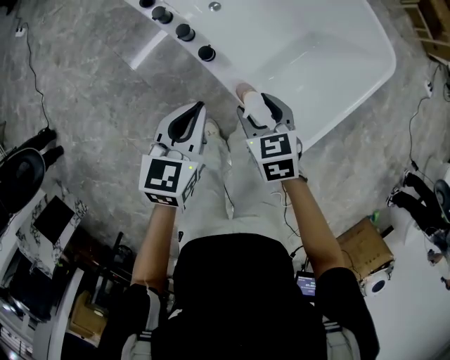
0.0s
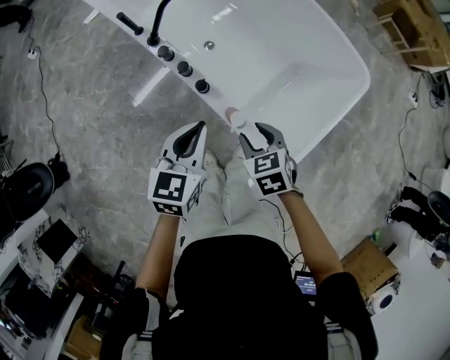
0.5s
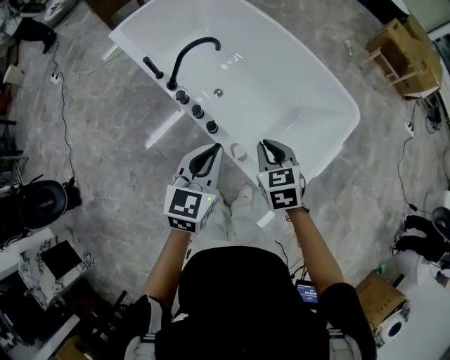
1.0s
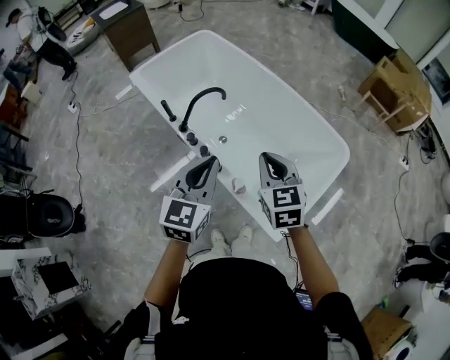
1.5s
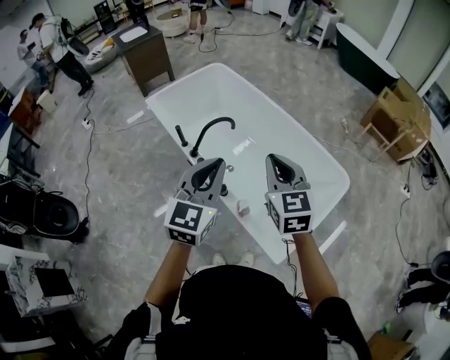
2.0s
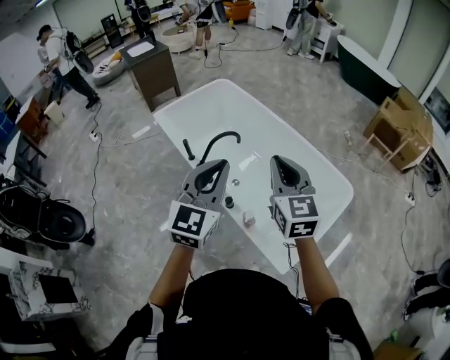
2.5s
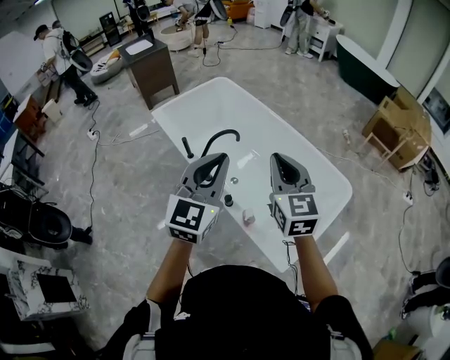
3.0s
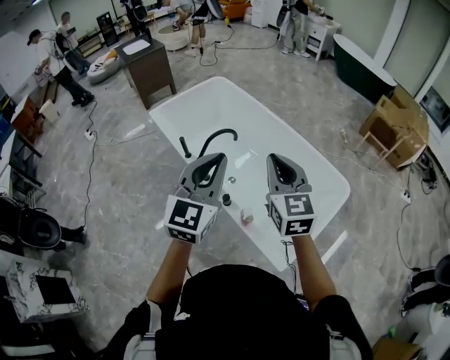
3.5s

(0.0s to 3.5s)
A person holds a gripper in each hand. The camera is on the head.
0.0s - 2.0s: Both grippers travel together upward, some 40 cm. The left gripper changes its angle by roughly 40 degrees. The right gripper points its fingers some 40 degrees further upward, and closes up.
2.0s - 3.5s: The left gripper heads upward, covering roughly 5 cm.

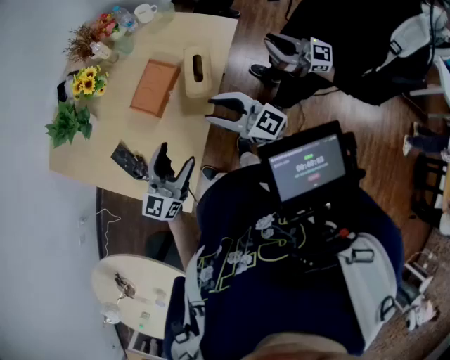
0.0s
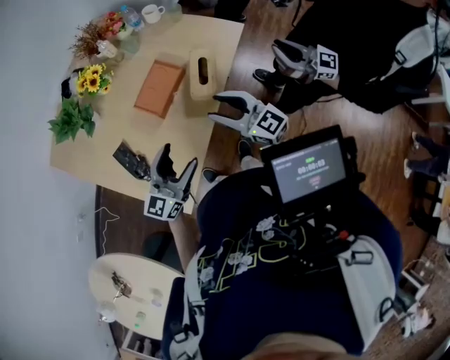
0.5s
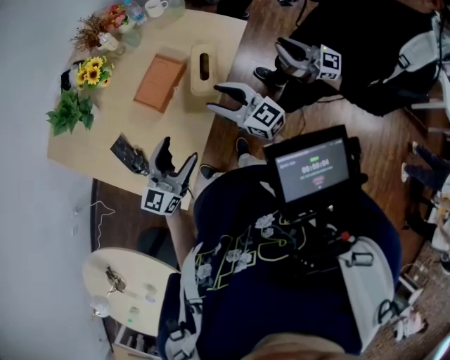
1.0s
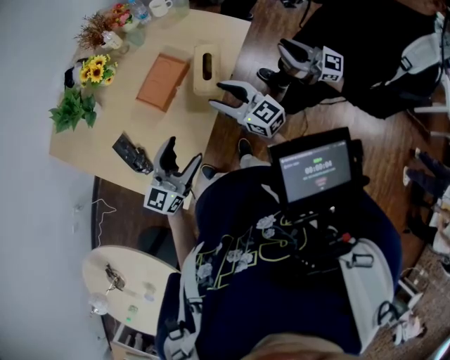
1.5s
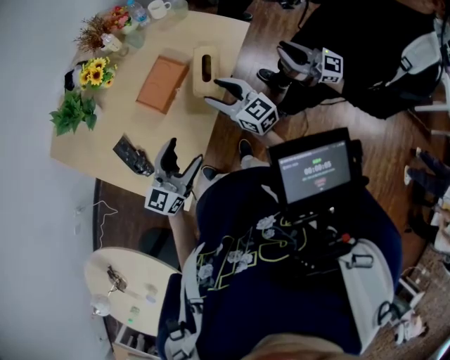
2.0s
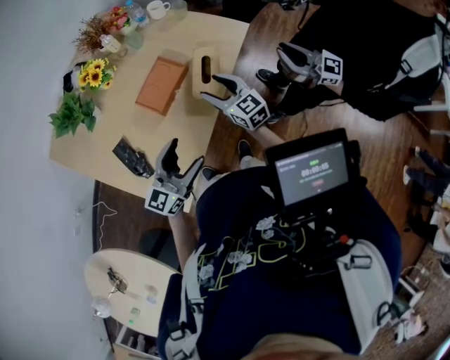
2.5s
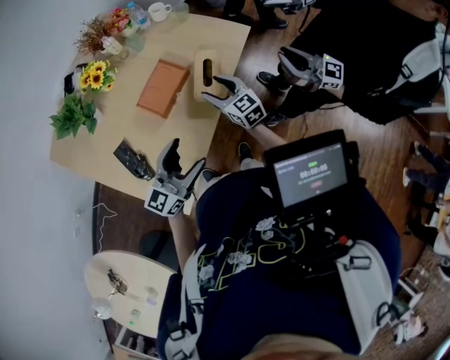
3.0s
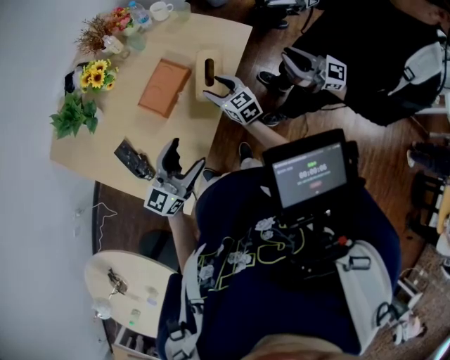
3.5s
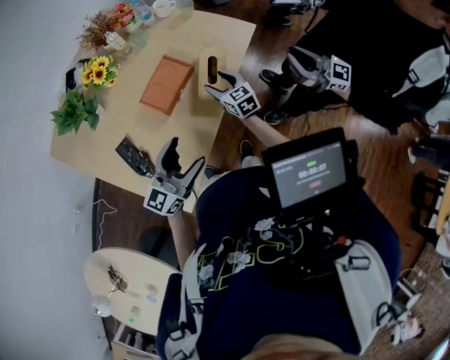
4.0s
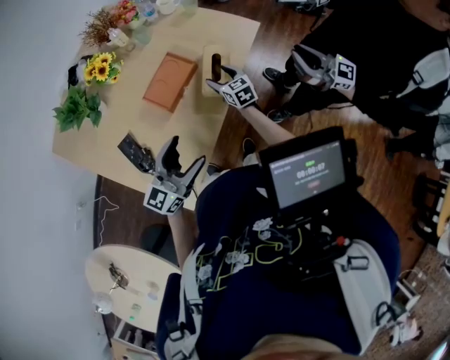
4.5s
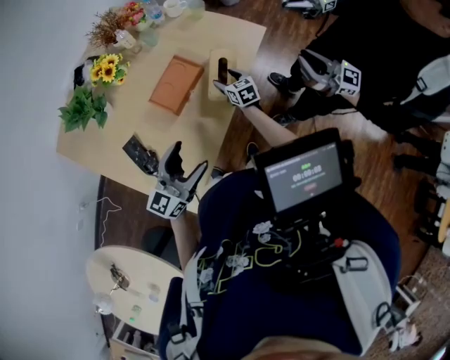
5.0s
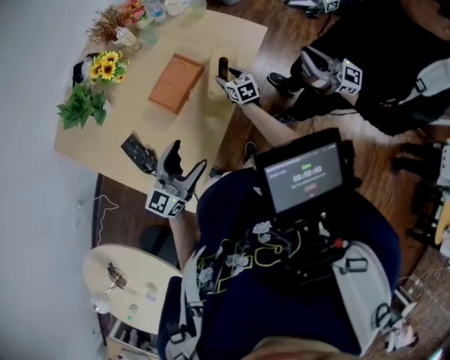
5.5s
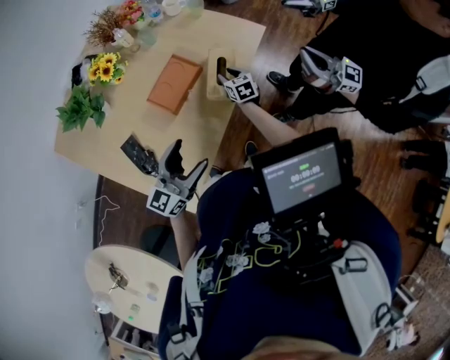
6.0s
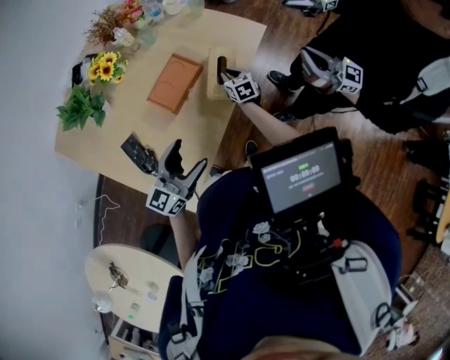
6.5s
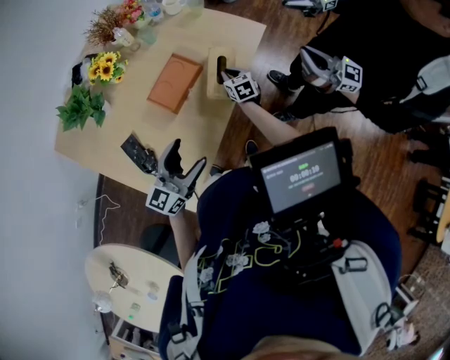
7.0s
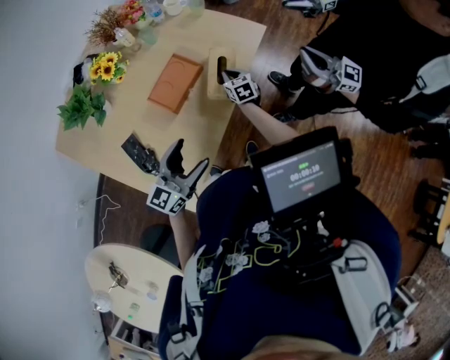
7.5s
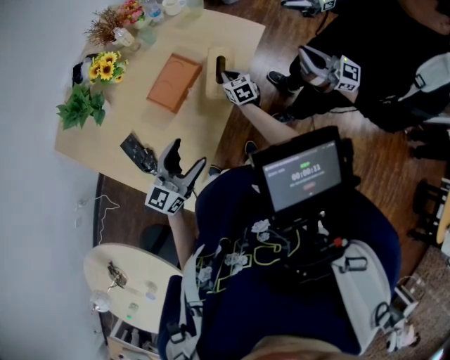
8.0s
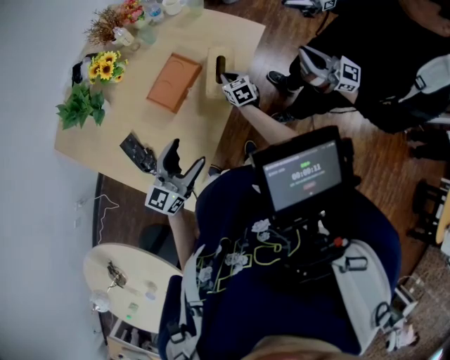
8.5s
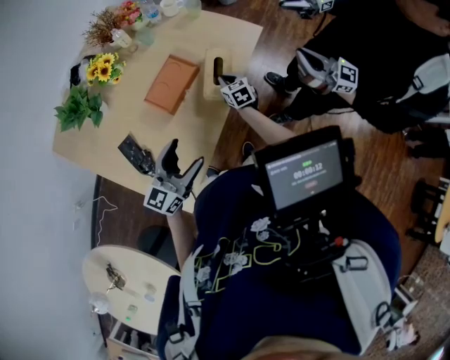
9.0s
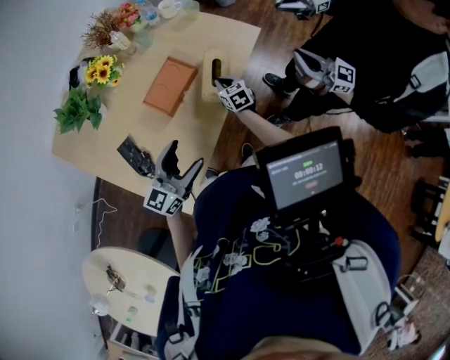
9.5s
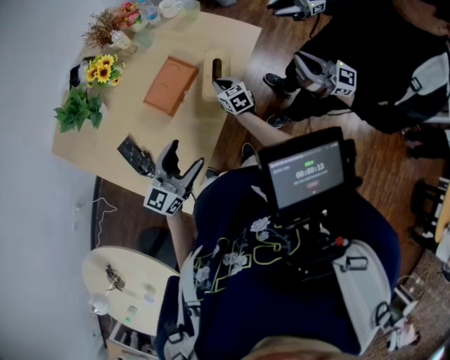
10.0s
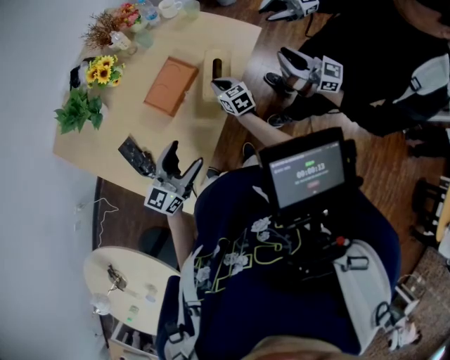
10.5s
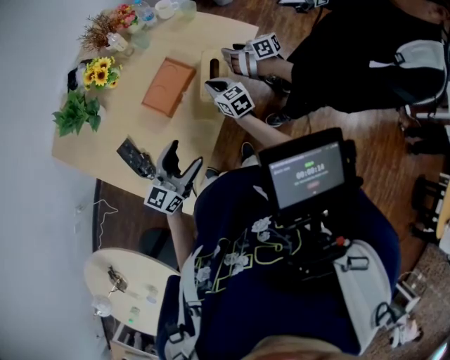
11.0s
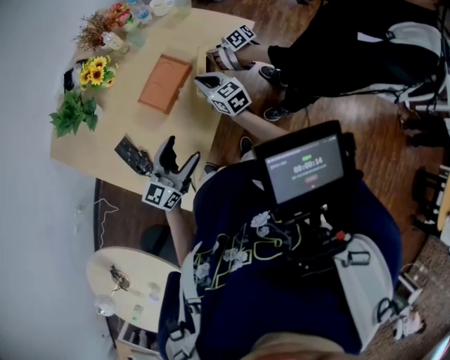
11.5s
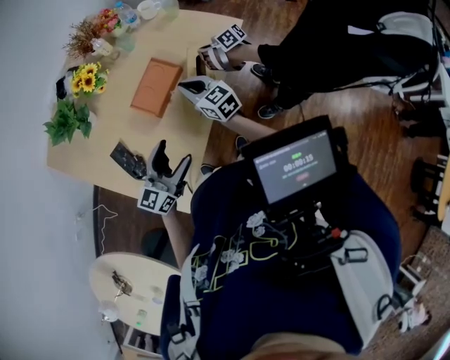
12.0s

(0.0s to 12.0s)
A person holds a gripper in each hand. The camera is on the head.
0.0s - 2.0s: The right gripper goes roughly 5 cm forward.
2.0s - 4.0s: The right gripper goes approximately 15 cm downward and forward.
4.0s - 6.0s: The right gripper heads downward and forward, covering some 10 cm, and closes its fingers.
6.0s - 8.0s: The right gripper closes up.
8.0s - 10.0s: The grippers move only a little.
10.0s - 12.0s: The right gripper is displaced upward and to the left by approximately 15 cm, and changes its angle by approximately 20 degrees.

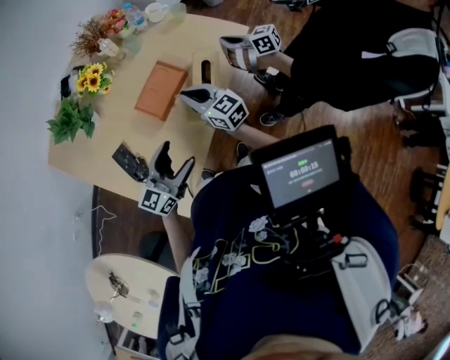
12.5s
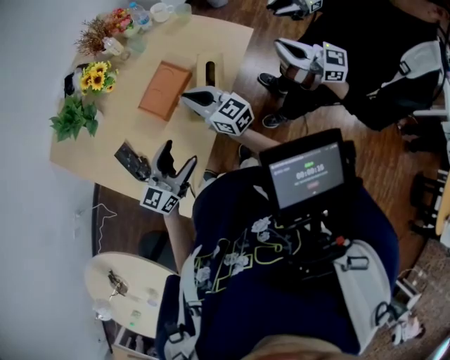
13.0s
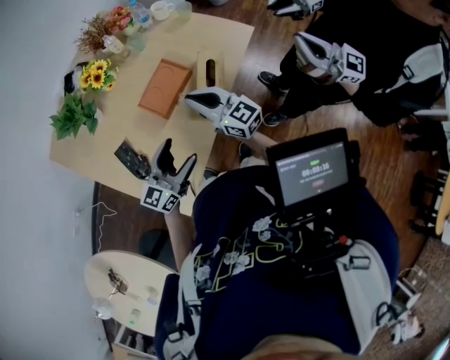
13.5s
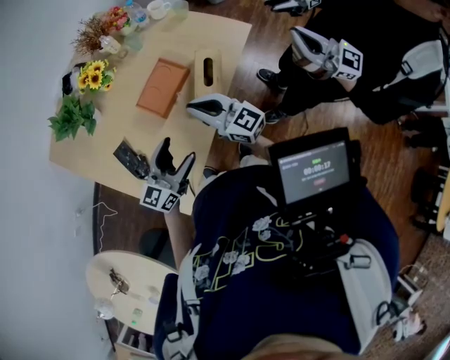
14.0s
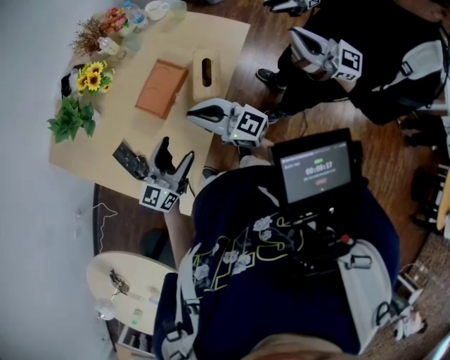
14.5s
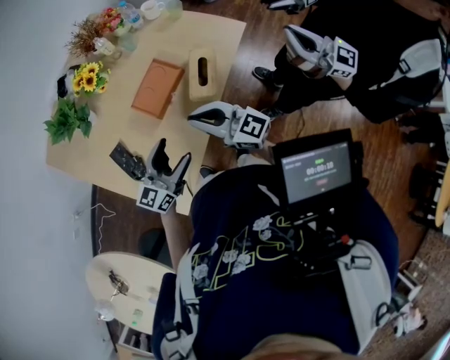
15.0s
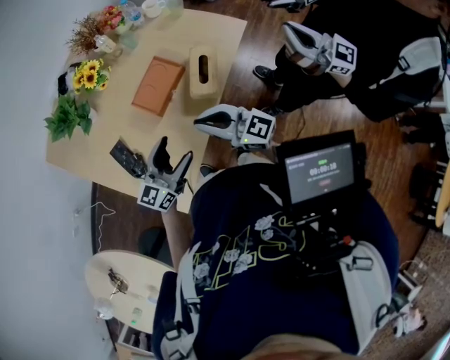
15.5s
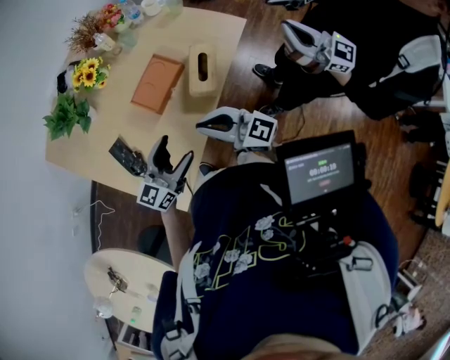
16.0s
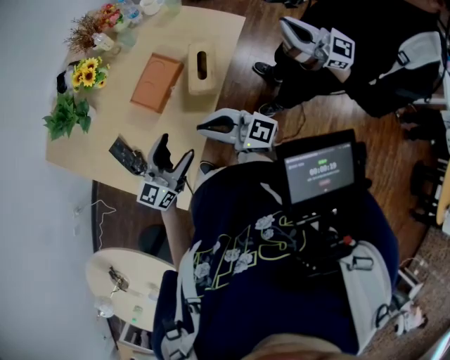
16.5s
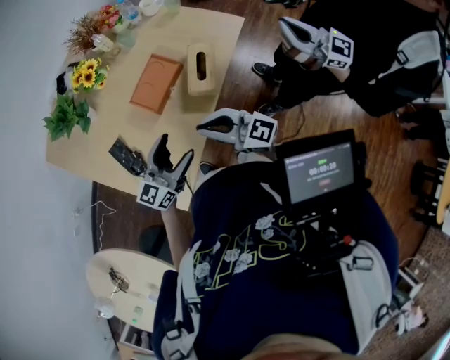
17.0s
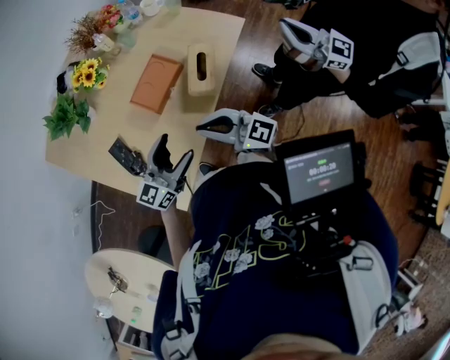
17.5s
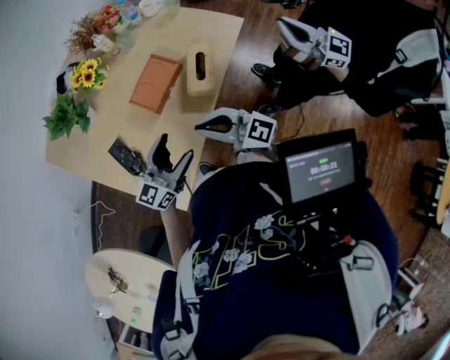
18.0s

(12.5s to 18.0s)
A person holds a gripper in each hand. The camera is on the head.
12.5s - 14.5s: The right gripper travels backward and upward by about 10 cm.
14.5s - 16.0s: The right gripper shifts roughly 5 cm backward.
16.0s - 18.0s: Neither gripper changes place.

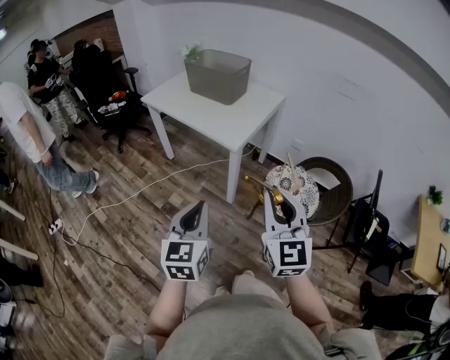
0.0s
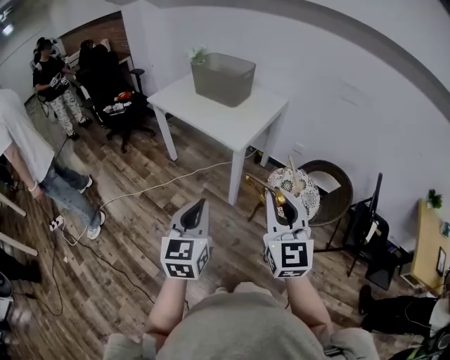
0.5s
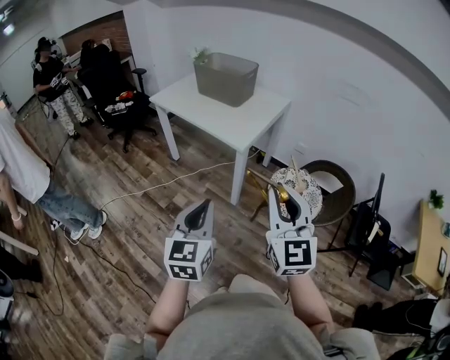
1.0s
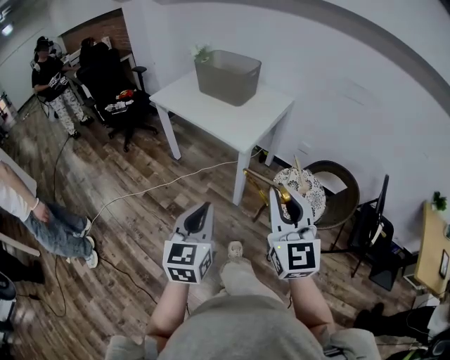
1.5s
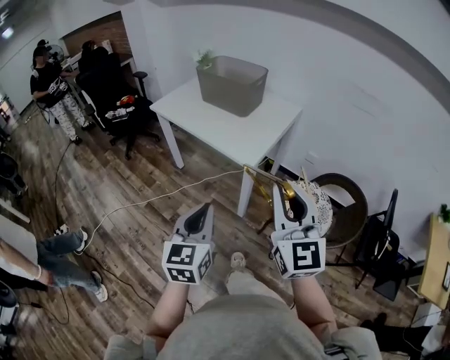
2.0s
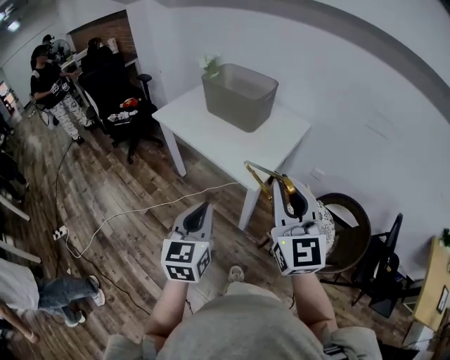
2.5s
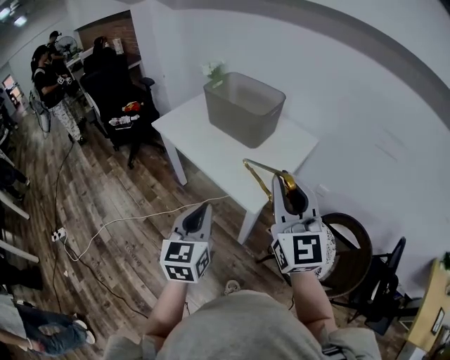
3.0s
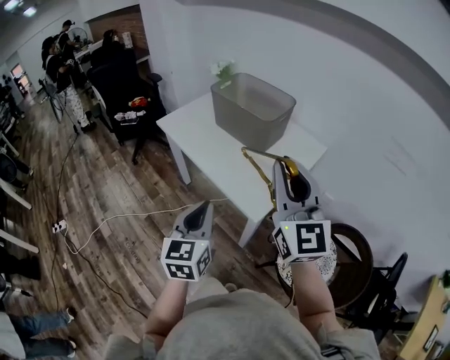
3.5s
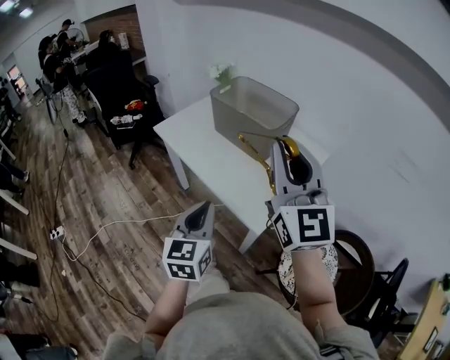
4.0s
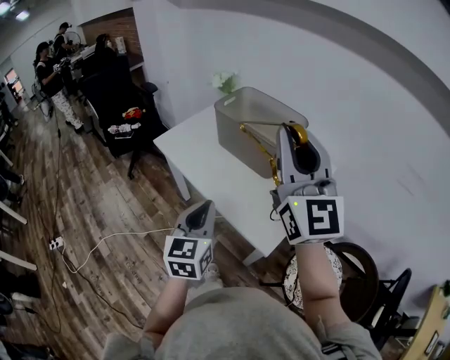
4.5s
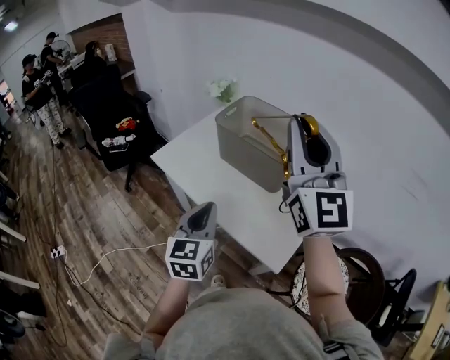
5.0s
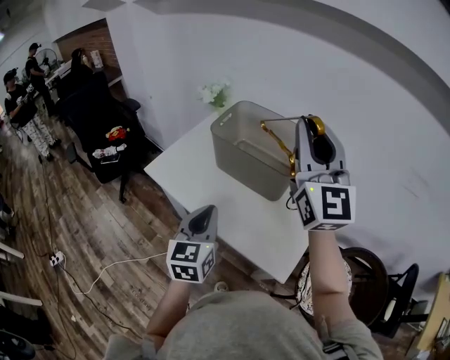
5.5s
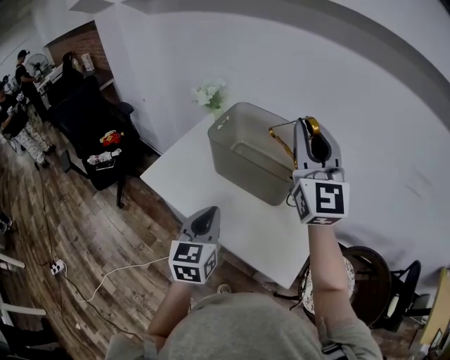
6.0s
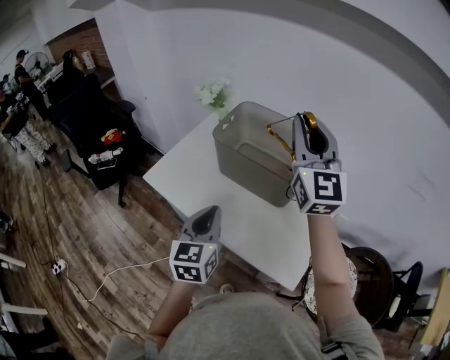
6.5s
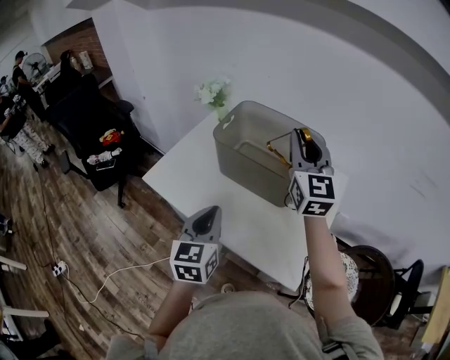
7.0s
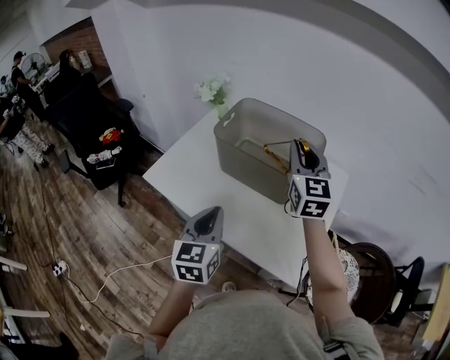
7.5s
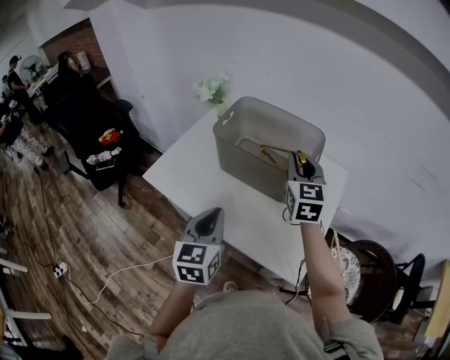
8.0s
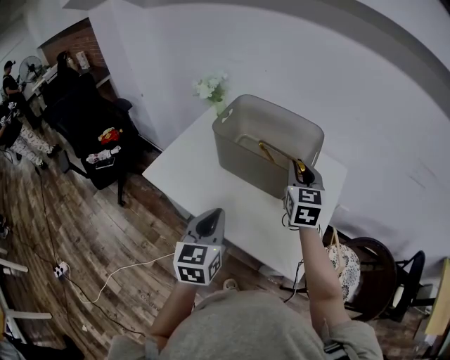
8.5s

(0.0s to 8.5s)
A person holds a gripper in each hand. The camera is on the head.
0.0s - 2.0s: The grippers both shift forward by roughly 10 cm.
2.0s - 4.0s: Both grippers travel together forward, approximately 30 cm.
4.0s - 6.5s: Both grippers travel together forward, roughly 30 cm.
6.5s - 8.5s: The right gripper shifts roughly 20 cm downward, and angles its fingers downward, by approximately 30 degrees.
